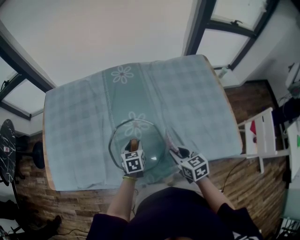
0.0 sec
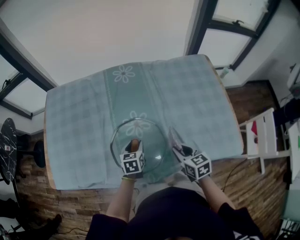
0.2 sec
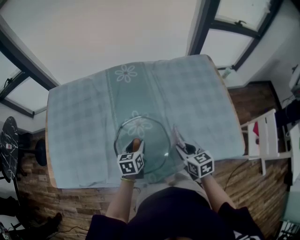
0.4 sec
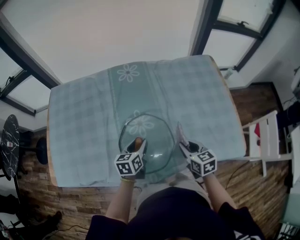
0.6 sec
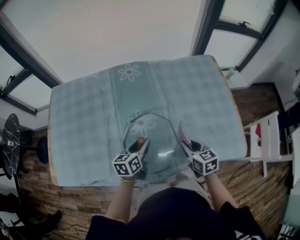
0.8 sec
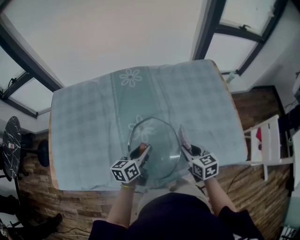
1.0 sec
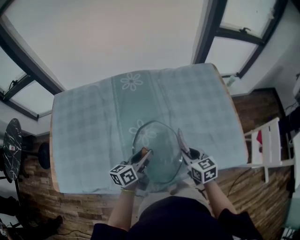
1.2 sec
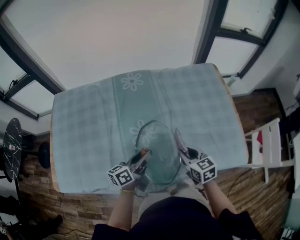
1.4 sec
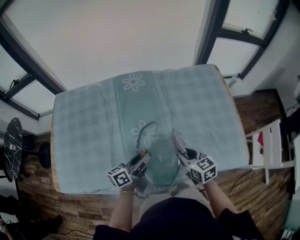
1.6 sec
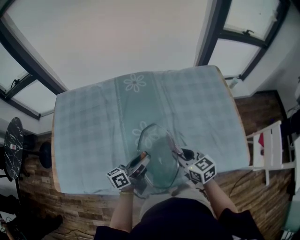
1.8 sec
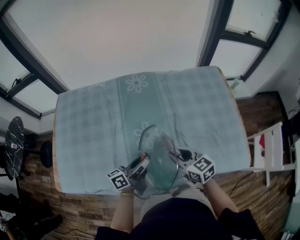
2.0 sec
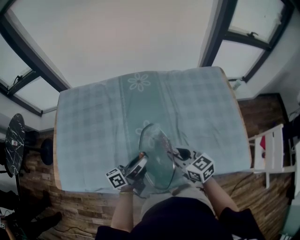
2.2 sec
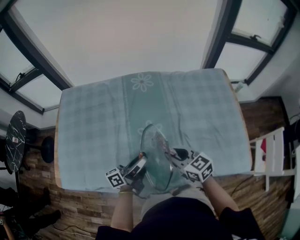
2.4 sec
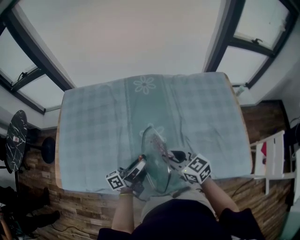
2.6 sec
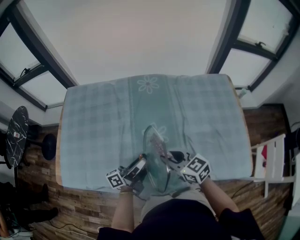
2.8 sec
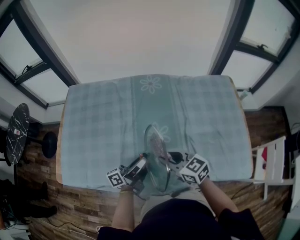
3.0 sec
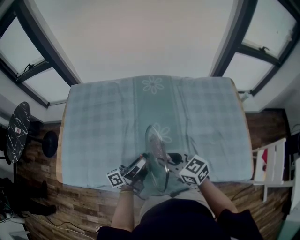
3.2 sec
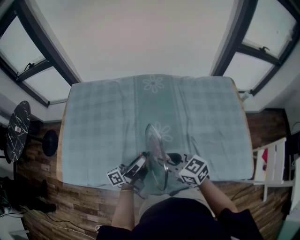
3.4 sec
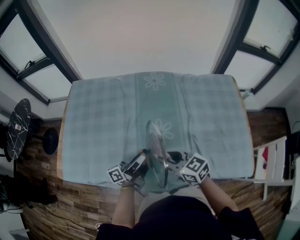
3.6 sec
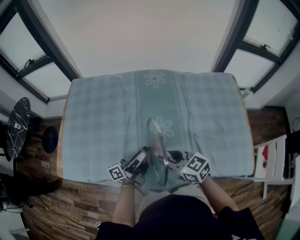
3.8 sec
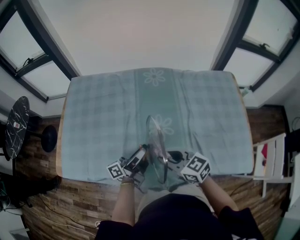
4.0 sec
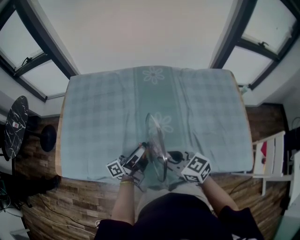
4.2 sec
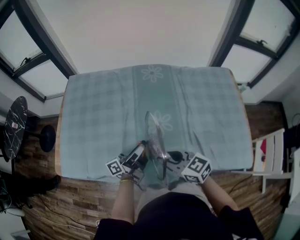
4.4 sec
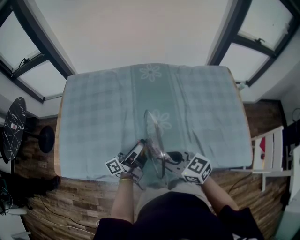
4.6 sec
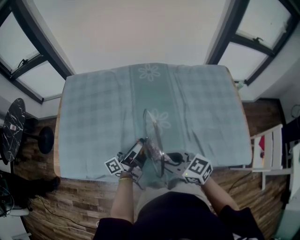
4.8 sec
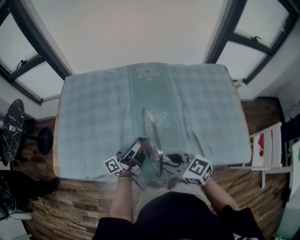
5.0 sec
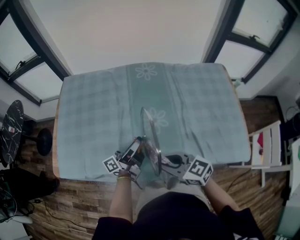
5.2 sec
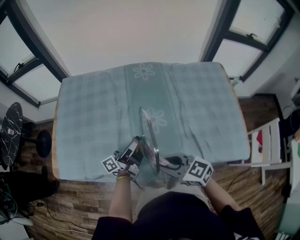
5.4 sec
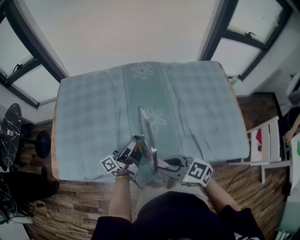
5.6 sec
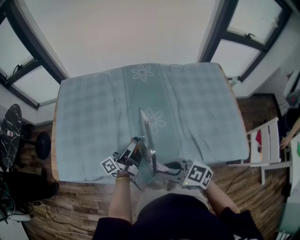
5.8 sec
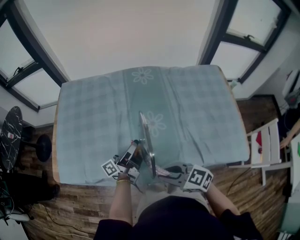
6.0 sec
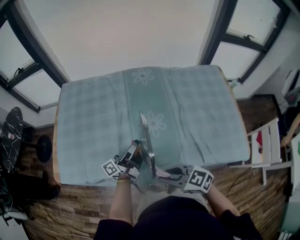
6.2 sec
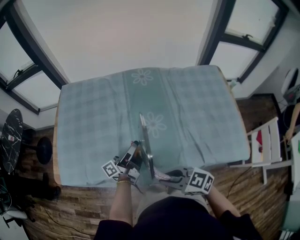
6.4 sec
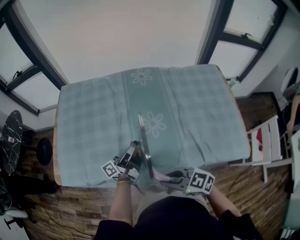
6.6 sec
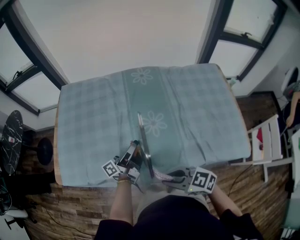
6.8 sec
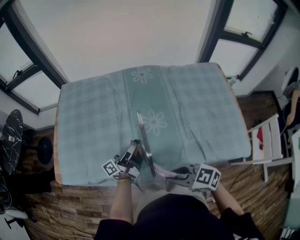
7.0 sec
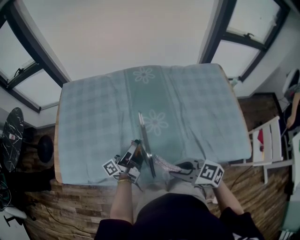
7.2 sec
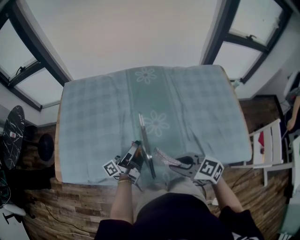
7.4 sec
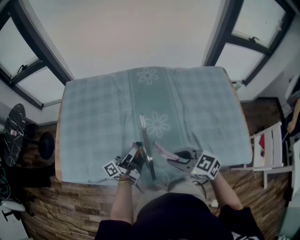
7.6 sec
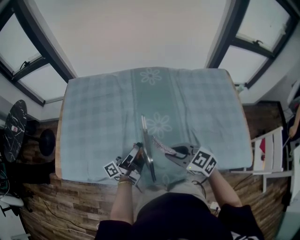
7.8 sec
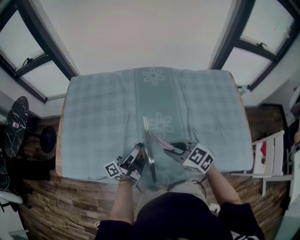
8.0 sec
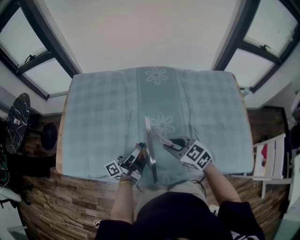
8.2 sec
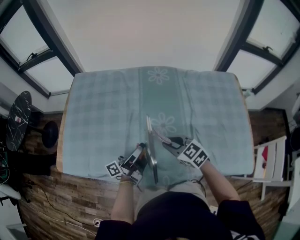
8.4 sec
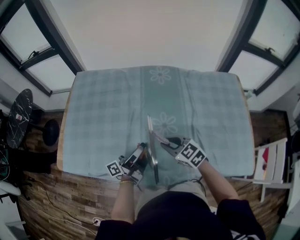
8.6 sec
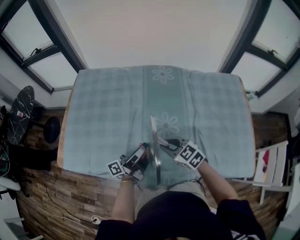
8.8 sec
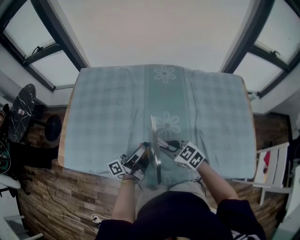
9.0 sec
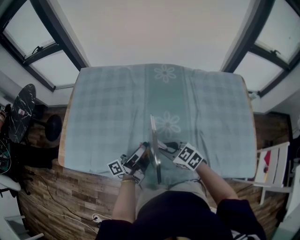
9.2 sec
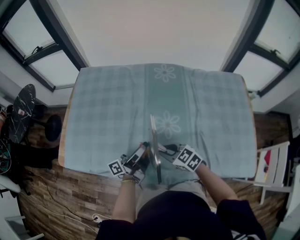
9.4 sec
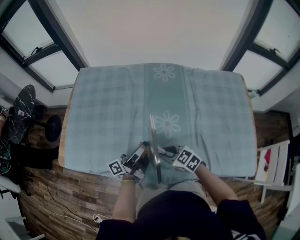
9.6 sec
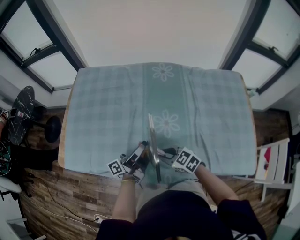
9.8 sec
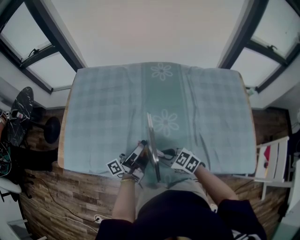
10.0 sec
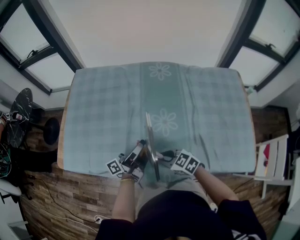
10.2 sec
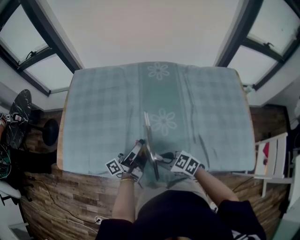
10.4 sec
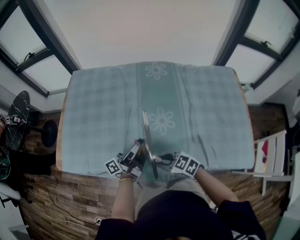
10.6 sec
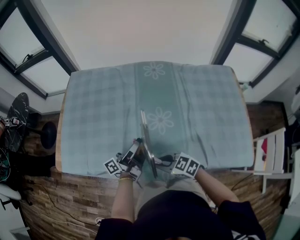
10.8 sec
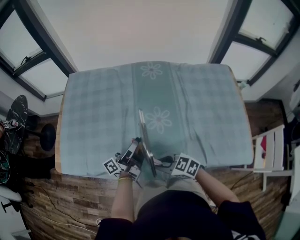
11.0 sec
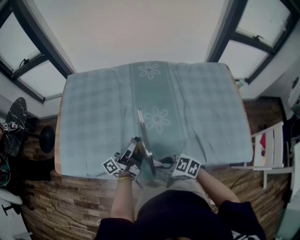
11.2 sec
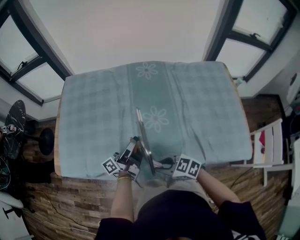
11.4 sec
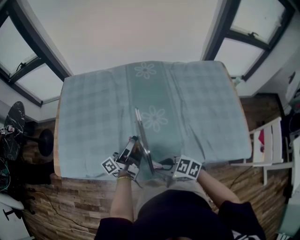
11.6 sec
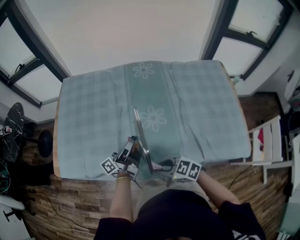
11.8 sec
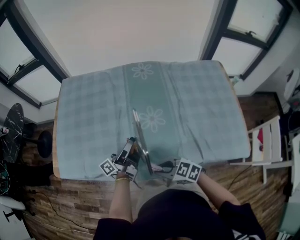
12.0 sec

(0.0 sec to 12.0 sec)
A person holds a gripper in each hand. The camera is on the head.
0.0 sec - 1.6 sec: The left gripper shifts approximately 10 cm upward, and points its fingers about 40 degrees further upward. The right gripper travels forward by approximately 5 cm.
1.6 sec - 3.0 sec: The left gripper shifts approximately 5 cm to the left, and rotates approximately 20 degrees, while the right gripper shifts some 15 cm to the left, and rotates some 30 degrees.
3.0 sec - 4.4 sec: The right gripper moves backward, approximately 5 cm.
4.4 sec - 6.0 sec: The right gripper shifts approximately 10 cm backward.
6.0 sec - 7.6 sec: The right gripper is displaced to the right and forward by about 10 cm.
7.6 sec - 9.0 sec: The right gripper heads forward and downward, covering approximately 10 cm.
9.0 sec - 10.4 sec: The right gripper moves backward, approximately 5 cm.
10.4 sec - 12.0 sec: The right gripper heads backward, covering about 5 cm.

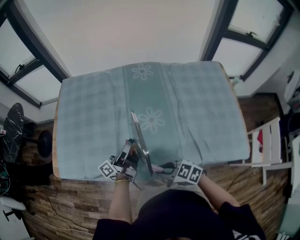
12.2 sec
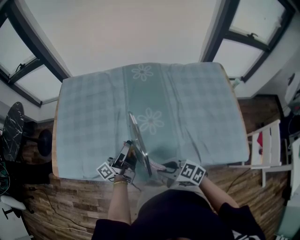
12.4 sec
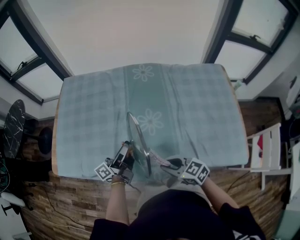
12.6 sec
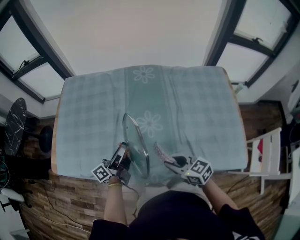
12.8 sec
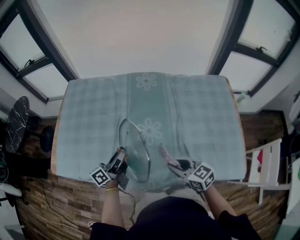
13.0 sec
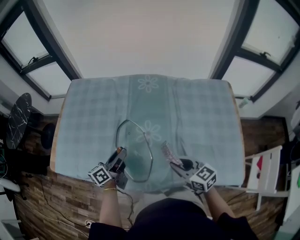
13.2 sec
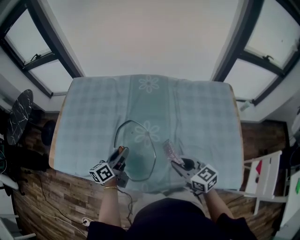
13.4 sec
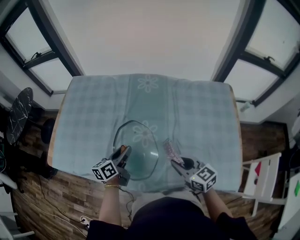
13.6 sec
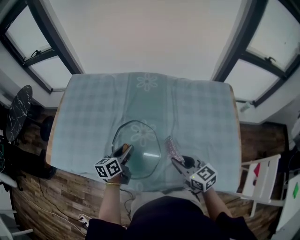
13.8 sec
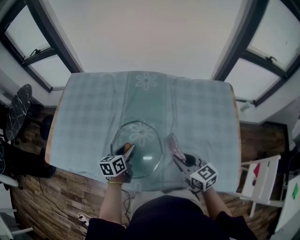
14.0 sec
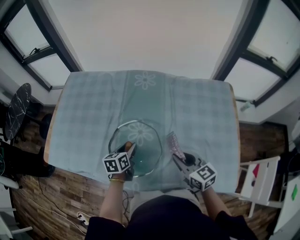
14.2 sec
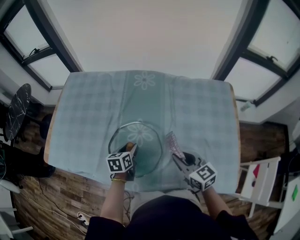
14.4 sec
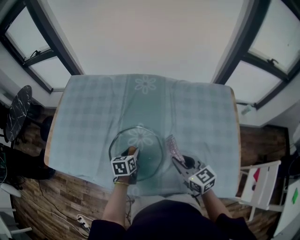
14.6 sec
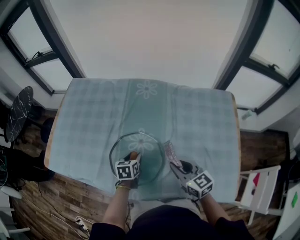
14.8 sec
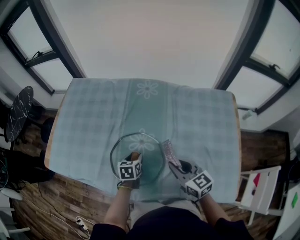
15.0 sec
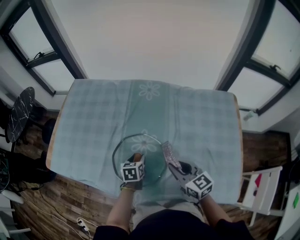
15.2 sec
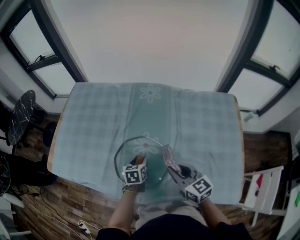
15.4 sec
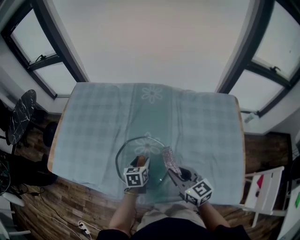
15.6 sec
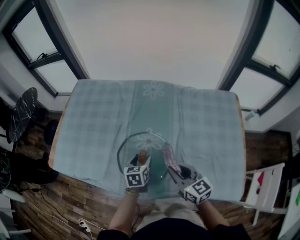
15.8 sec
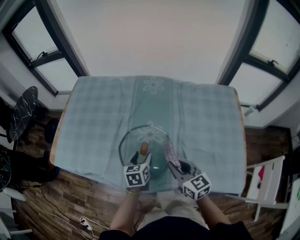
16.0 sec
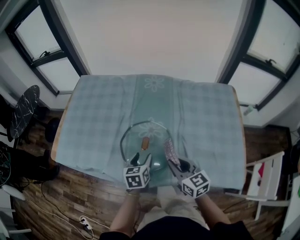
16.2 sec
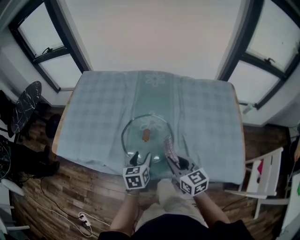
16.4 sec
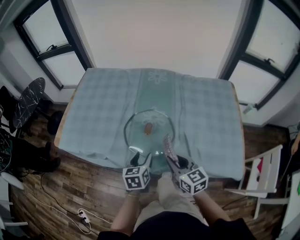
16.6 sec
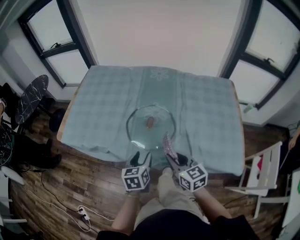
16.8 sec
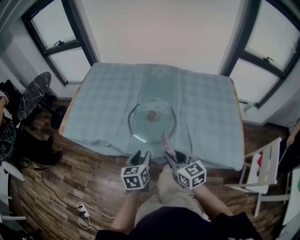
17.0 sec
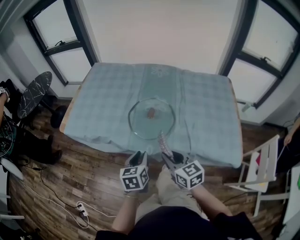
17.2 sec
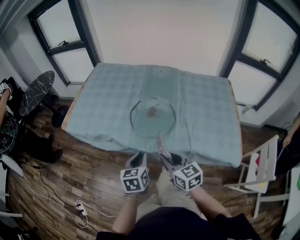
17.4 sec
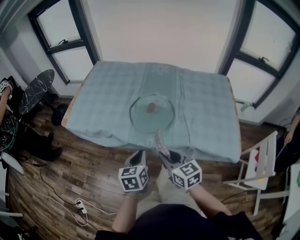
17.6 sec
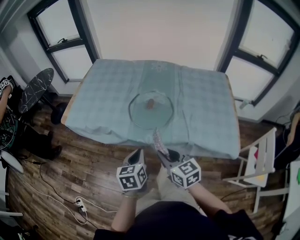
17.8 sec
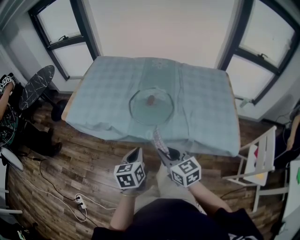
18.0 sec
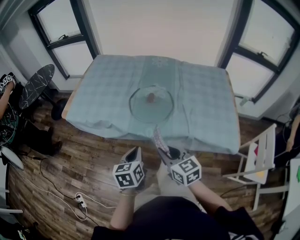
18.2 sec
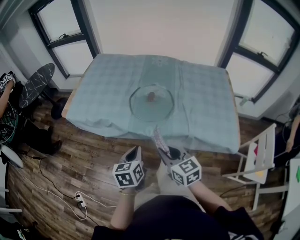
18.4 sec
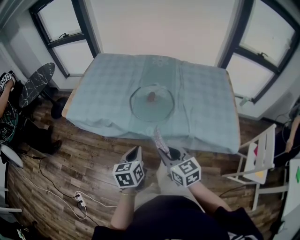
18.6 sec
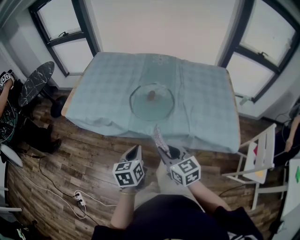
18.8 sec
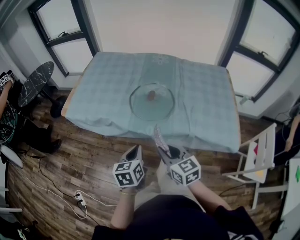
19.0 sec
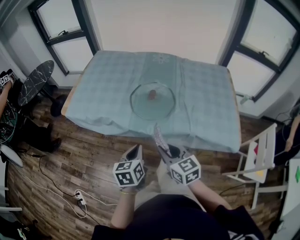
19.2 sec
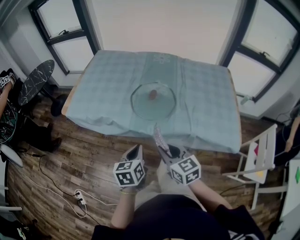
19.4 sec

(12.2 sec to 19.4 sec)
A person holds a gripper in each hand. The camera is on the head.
12.2 sec - 13.6 sec: The left gripper ends up about 5 cm from where it was, and points its fingers approximately 40 degrees further downward. Meanwhile the right gripper travels to the right by about 20 cm, and swivels roughly 30 degrees.
13.6 sec - 15.0 sec: The left gripper shifts approximately 10 cm downward and to the right, and points its fingers some 30 degrees further downward.
15.0 sec - 16.6 sec: The right gripper moves backward and to the left, some 15 cm, while the left gripper travels backward and upward by about 20 cm.
16.6 sec - 18.0 sec: The left gripper heads backward, covering some 20 cm, and closes up, while the right gripper is displaced backward and to the left by about 20 cm.
18.0 sec - 19.4 sec: The grippers stay close to where they were, moving slightly.

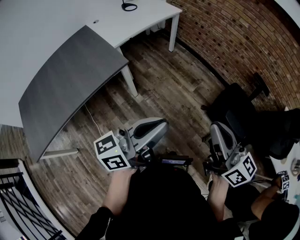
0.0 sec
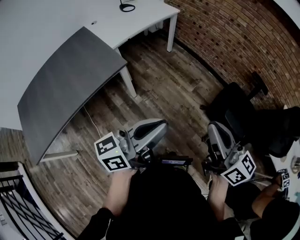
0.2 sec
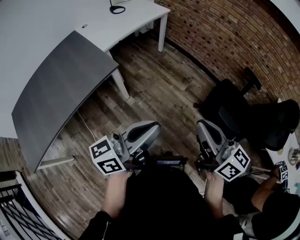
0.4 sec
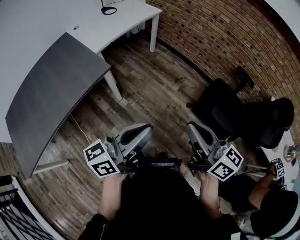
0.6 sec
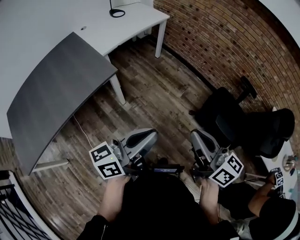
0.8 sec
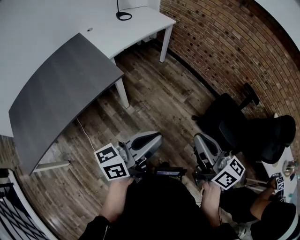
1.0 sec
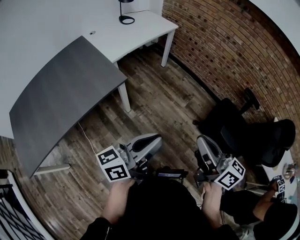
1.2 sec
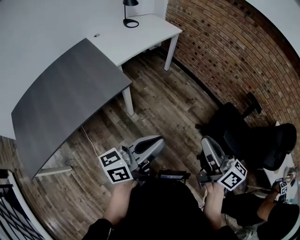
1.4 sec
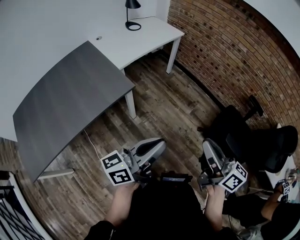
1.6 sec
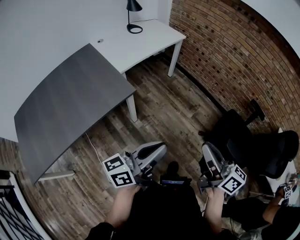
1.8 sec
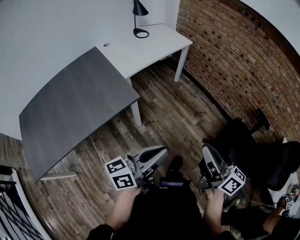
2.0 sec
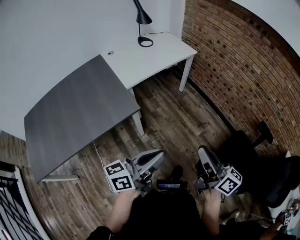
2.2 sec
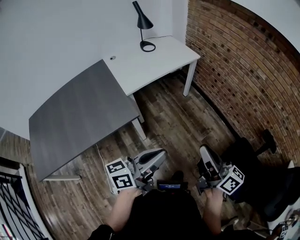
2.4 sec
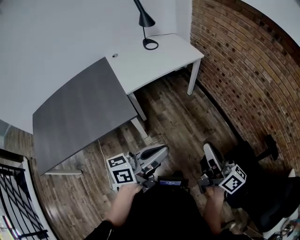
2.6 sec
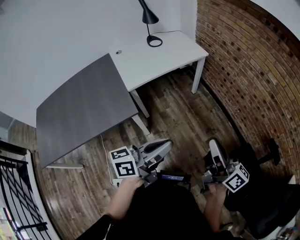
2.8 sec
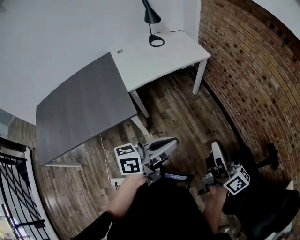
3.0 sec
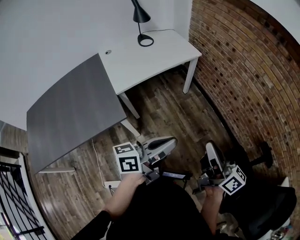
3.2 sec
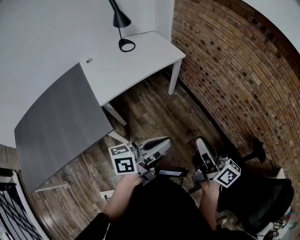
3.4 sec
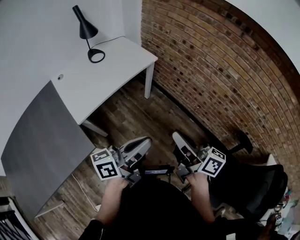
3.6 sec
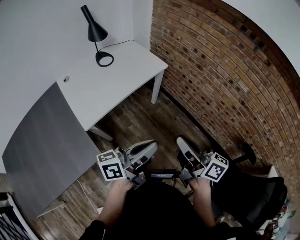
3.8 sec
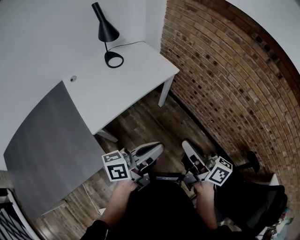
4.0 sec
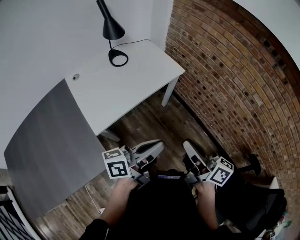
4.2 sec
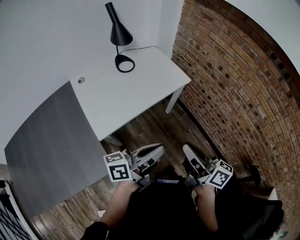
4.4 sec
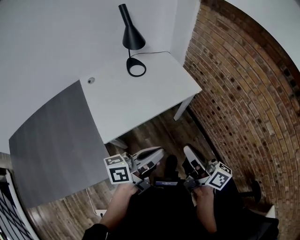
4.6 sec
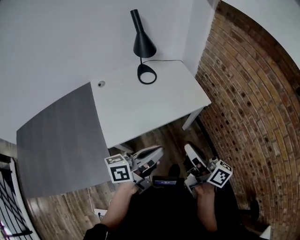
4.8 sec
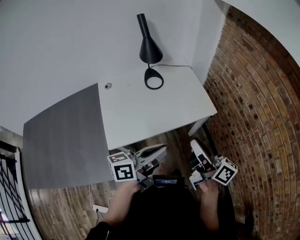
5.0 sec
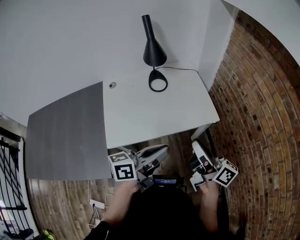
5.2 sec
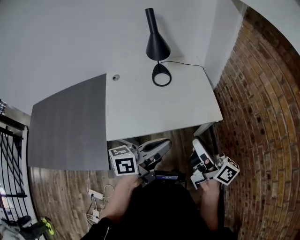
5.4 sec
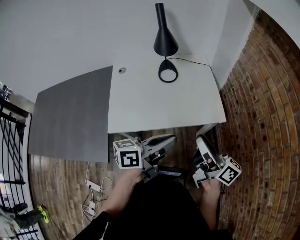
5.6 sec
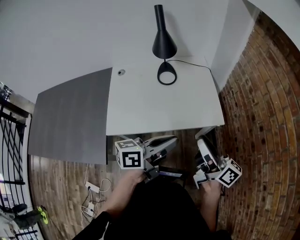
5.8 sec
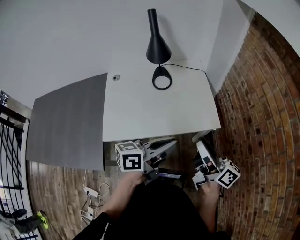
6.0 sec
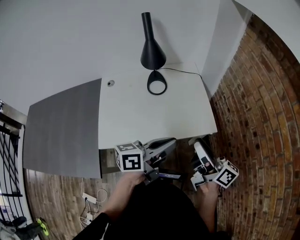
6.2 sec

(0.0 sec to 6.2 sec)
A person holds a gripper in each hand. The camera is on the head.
0.0 sec - 1.6 sec: The two grippers go about 10 cm to the left.
1.6 sec - 3.2 sec: Both grippers move forward and to the right, some 30 cm.
3.2 sec - 4.6 sec: Both grippers travel together forward and to the left, roughly 30 cm.
4.6 sec - 6.2 sec: The grippers both shift forward and to the right by about 25 cm. The left gripper changes its angle by roughly 20 degrees. The right gripper opens its fingers.
